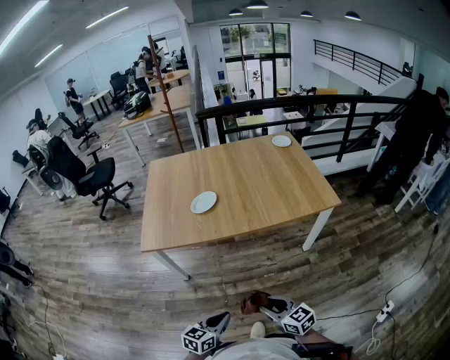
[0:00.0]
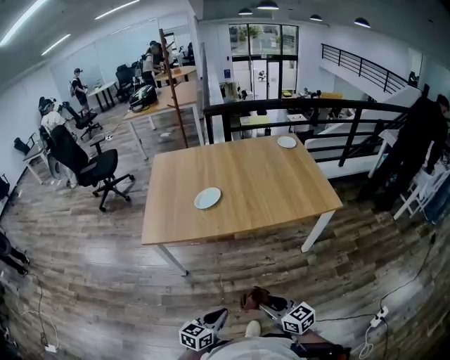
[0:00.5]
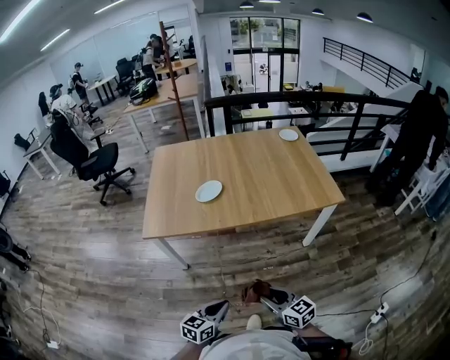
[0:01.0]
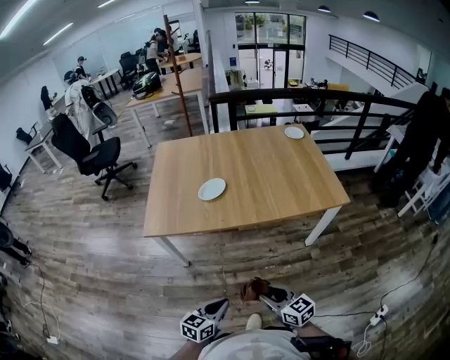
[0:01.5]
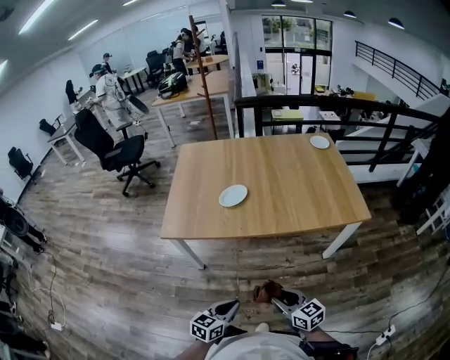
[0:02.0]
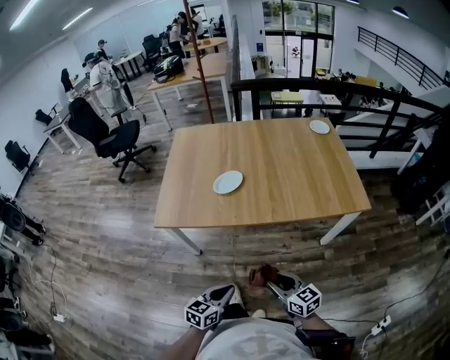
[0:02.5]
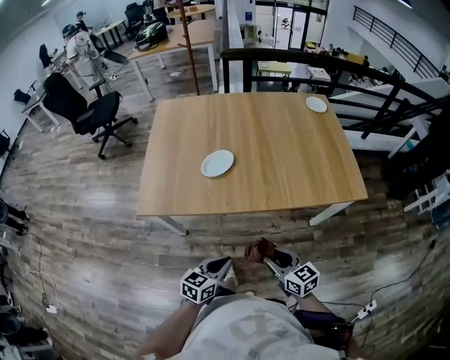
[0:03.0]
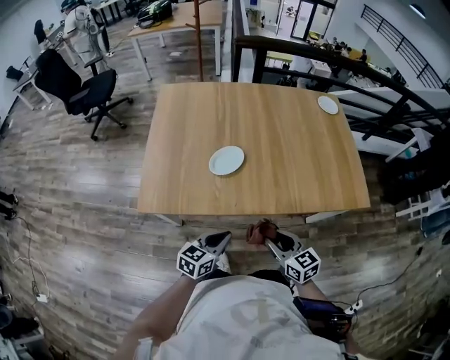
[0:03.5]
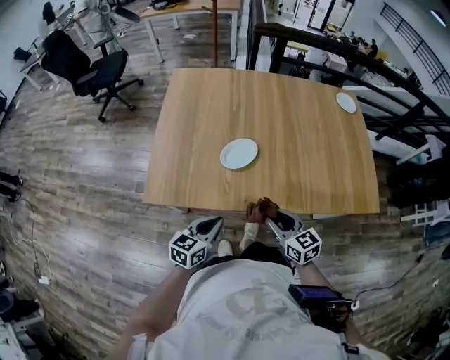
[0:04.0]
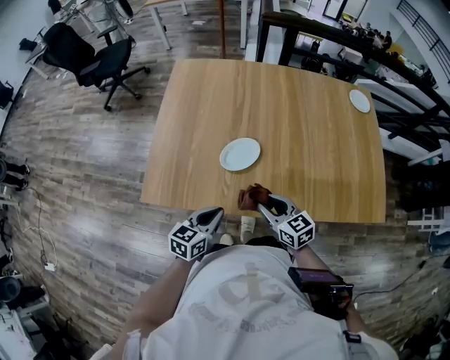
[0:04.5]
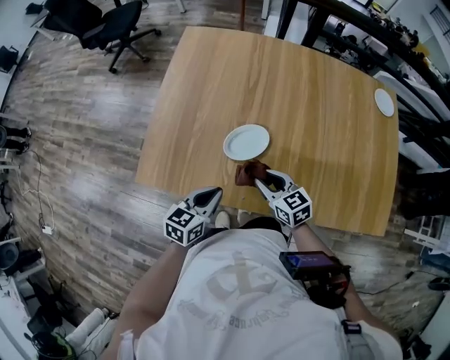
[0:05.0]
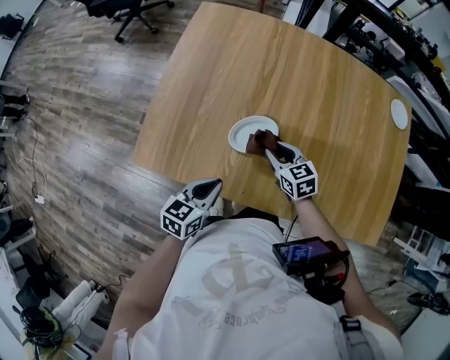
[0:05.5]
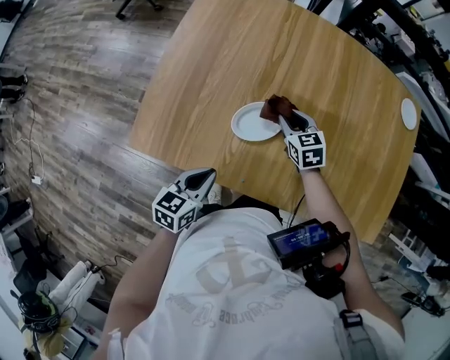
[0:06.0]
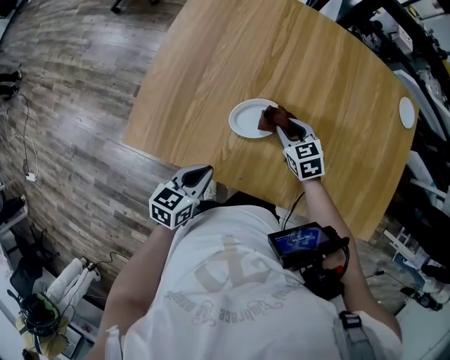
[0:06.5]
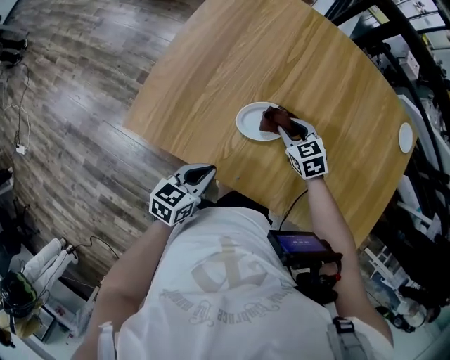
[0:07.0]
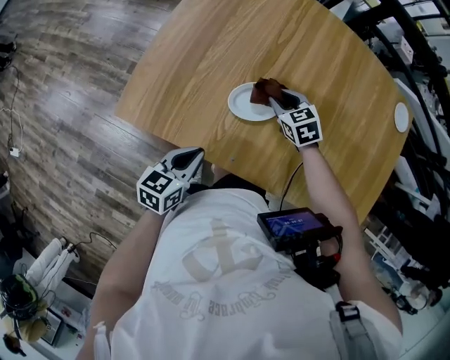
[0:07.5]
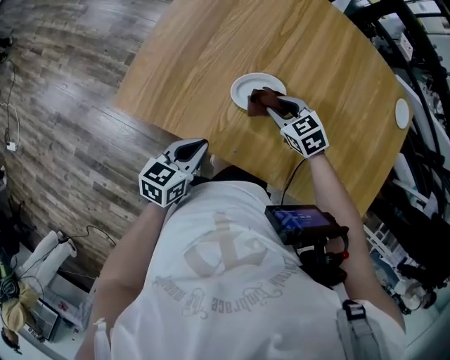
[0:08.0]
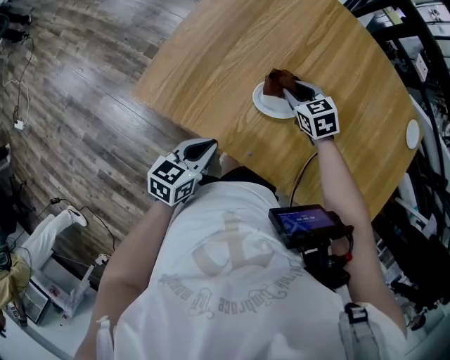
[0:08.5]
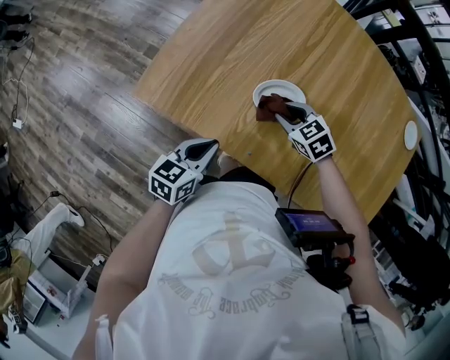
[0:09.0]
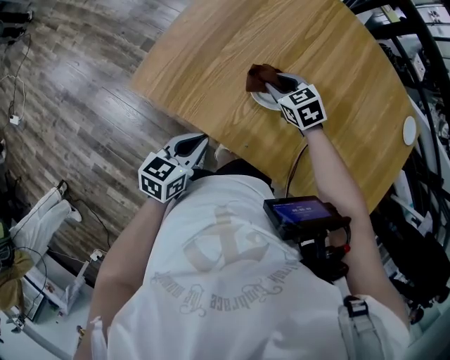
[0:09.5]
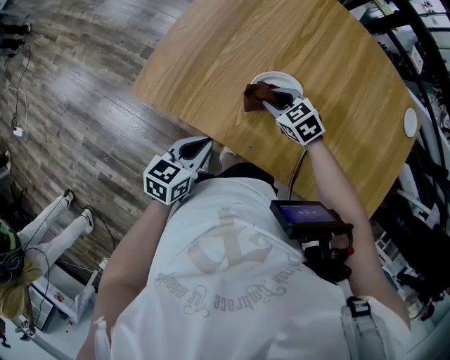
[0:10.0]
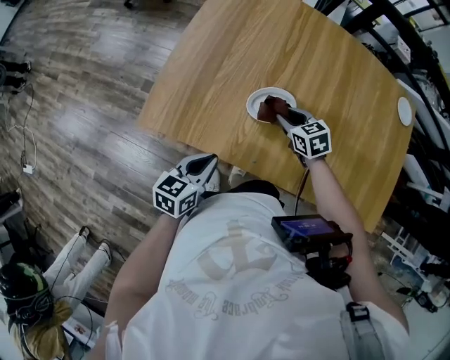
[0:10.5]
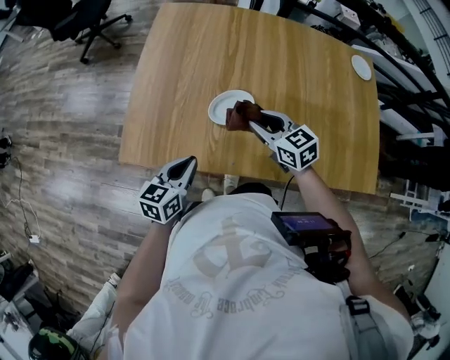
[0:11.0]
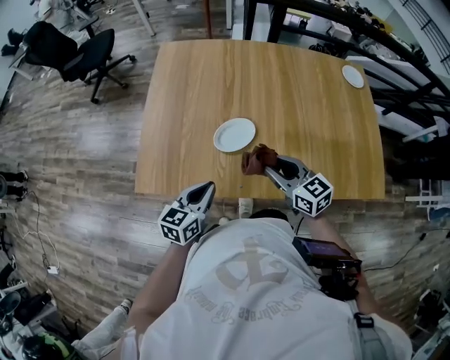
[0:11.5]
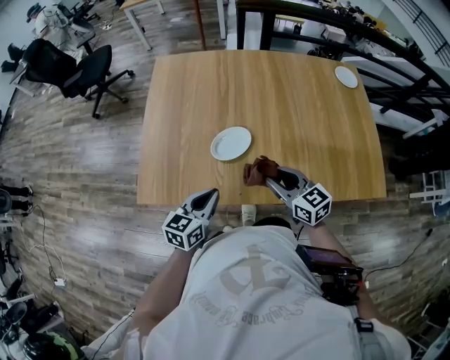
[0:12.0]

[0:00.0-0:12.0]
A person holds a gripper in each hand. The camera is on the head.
0:00.0 to 0:02.0: Both grippers move forward, about 5 cm.
0:02.0 to 0:04.0: The grippers both shift forward by about 30 cm.
0:04.0 to 0:06.0: The right gripper is displaced forward by approximately 30 cm, and swivels about 20 degrees. Meanwhile the left gripper is displaced forward by approximately 10 cm.
0:06.0 to 0:08.0: The right gripper heads backward, covering about 5 cm, and rotates roughly 30 degrees.
0:08.0 to 0:10.0: The right gripper swings forward and backward, roughly 5 cm each way, with 3 reversals.
0:10.0 to 0:12.0: The left gripper changes place by some 10 cm, and rotates approximately 20 degrees. The right gripper moves about 25 cm, and tips its fingers upward by roughly 40 degrees.

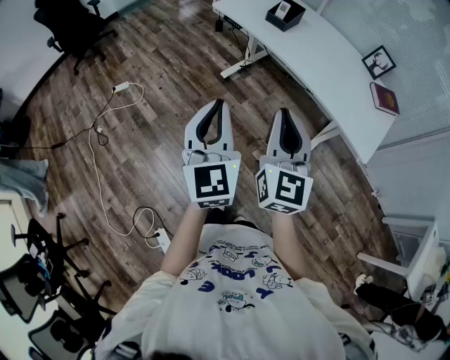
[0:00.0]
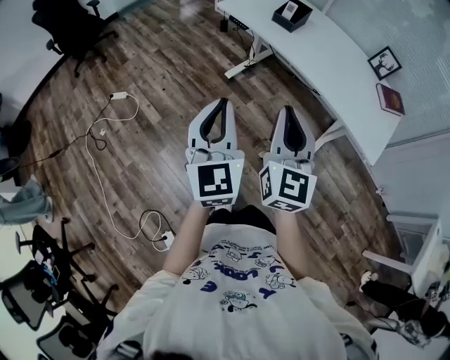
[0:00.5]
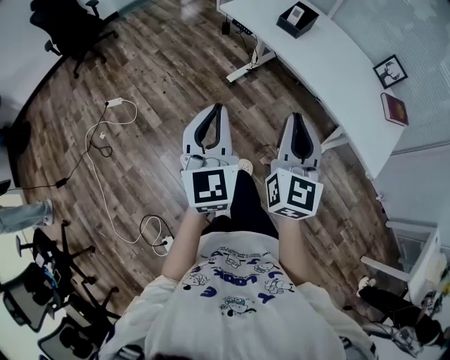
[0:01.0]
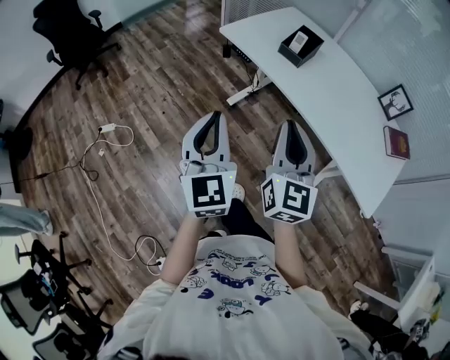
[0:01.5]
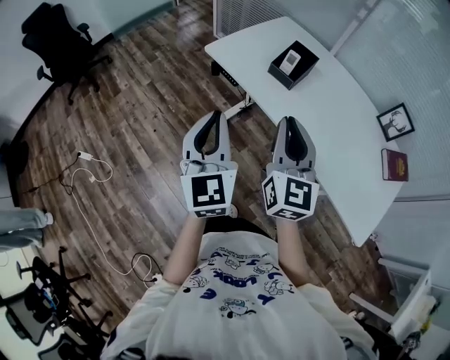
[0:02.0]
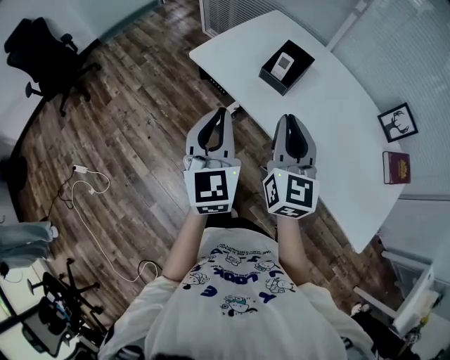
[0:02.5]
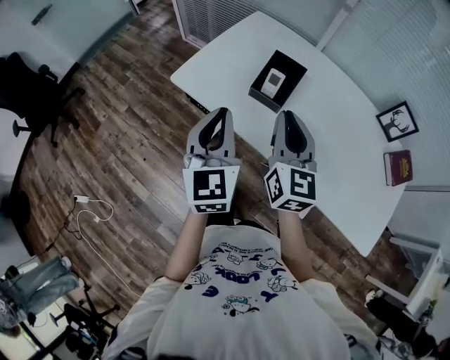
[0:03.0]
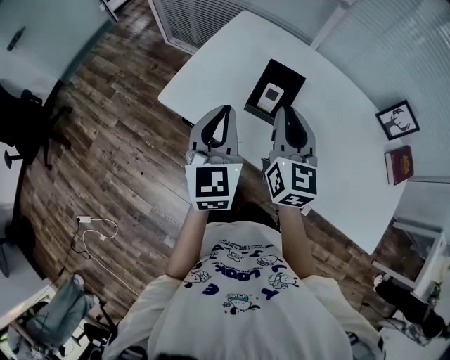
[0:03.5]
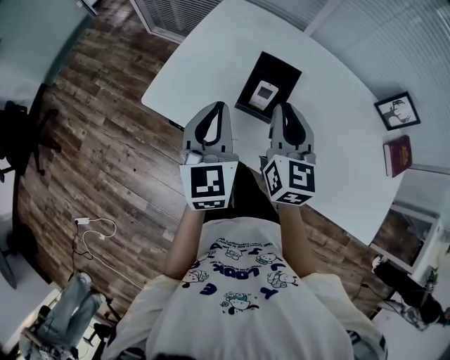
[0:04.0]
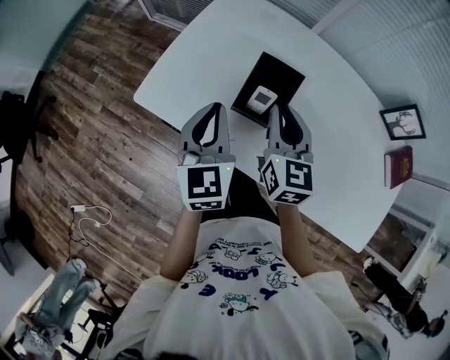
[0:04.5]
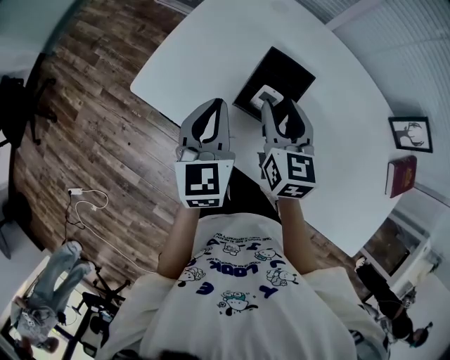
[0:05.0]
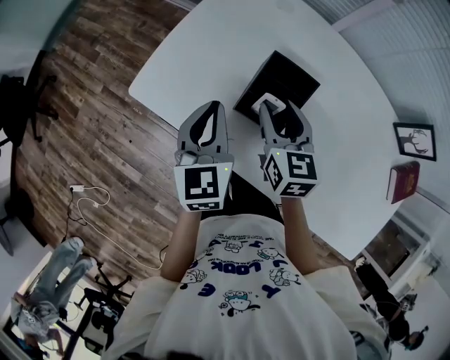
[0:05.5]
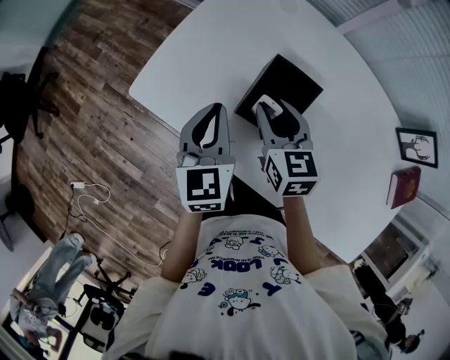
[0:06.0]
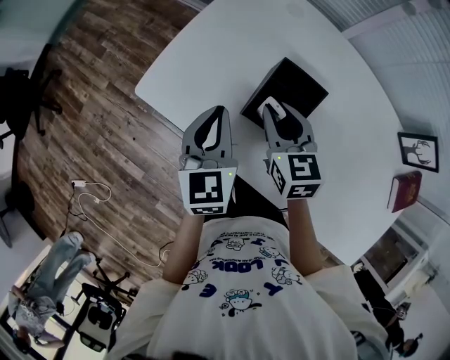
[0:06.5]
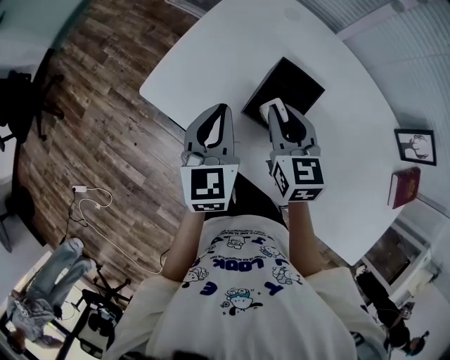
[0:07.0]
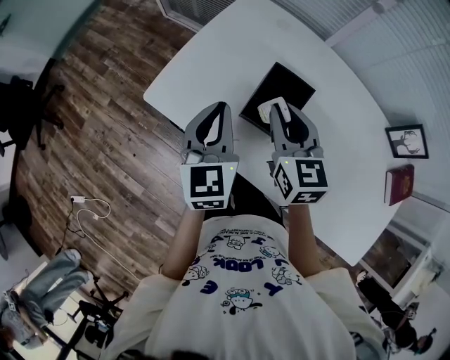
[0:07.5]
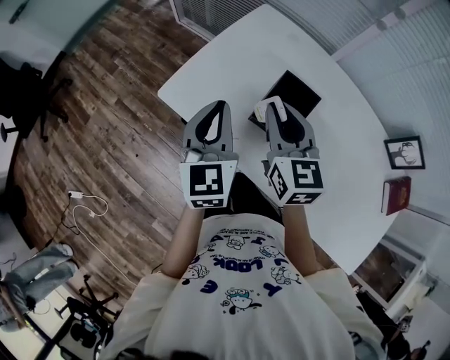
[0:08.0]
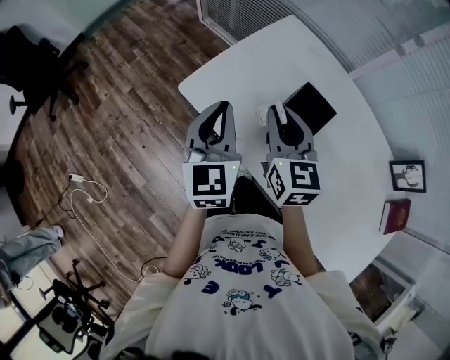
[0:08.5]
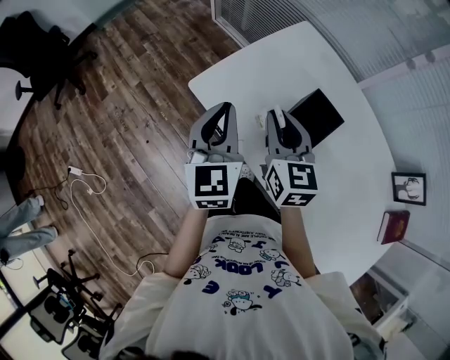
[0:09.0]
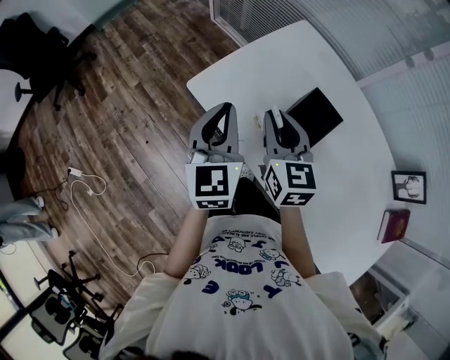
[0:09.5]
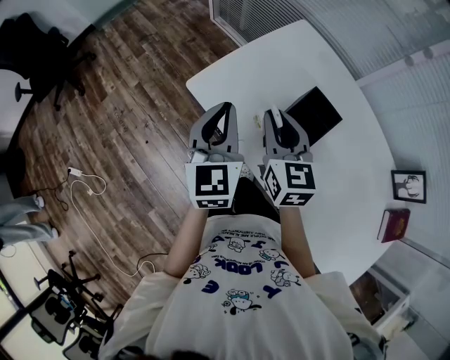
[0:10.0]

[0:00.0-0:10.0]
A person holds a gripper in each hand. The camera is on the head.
0:00.0 to 0:02.0: Both grippers move forward, about 40 cm.
0:02.0 to 0:04.0: Both grippers move forward, some 40 cm. The left gripper swivels about 30 degrees, while the right gripper rotates about 20 degrees.
0:04.0 to 0:06.0: The grippers both shift downward and forward by approximately 15 cm. The right gripper turns by roughly 30 degrees, and opens its fingers.
0:06.0 to 0:08.0: Both grippers travel together upward and to the left, approximately 10 cm.
0:08.0 to 0:10.0: The two grippers go roughly 5 cm to the left.

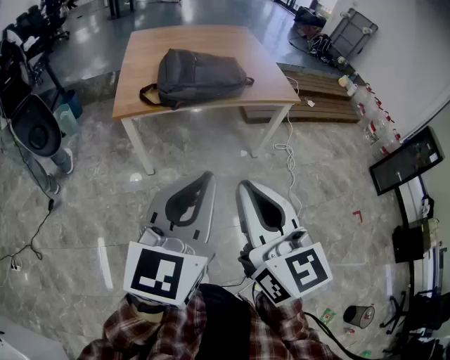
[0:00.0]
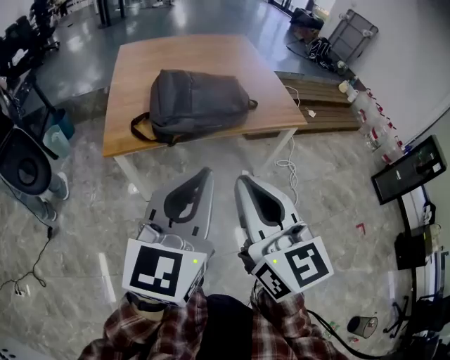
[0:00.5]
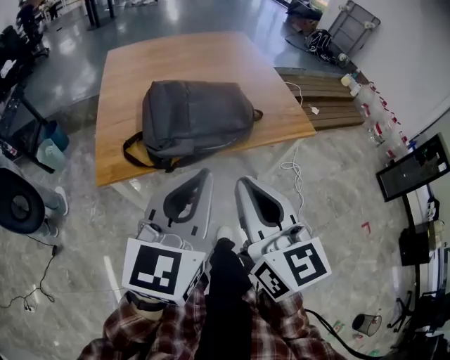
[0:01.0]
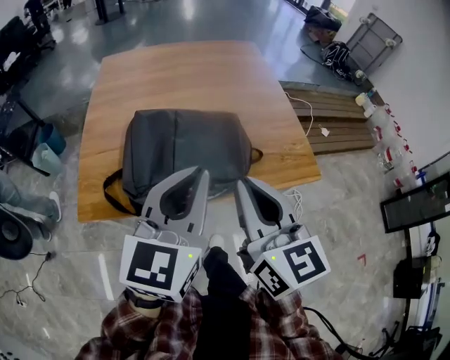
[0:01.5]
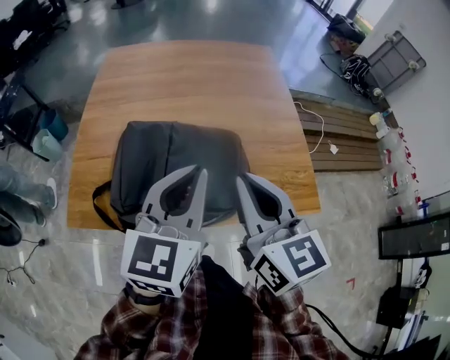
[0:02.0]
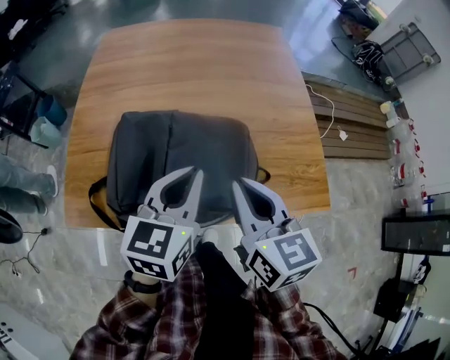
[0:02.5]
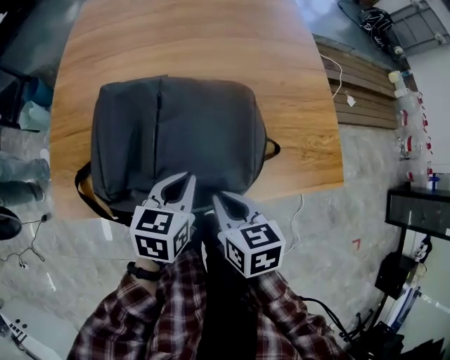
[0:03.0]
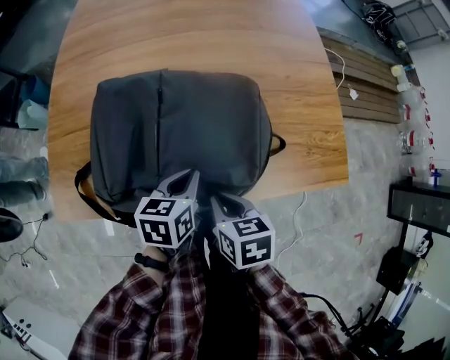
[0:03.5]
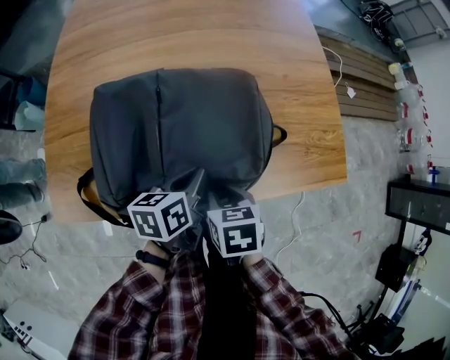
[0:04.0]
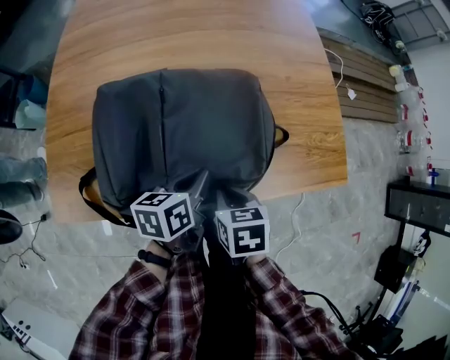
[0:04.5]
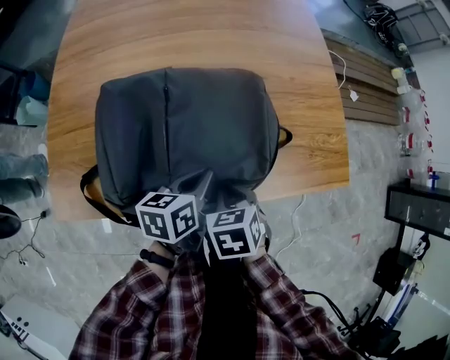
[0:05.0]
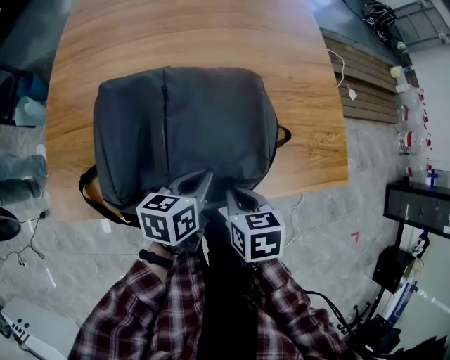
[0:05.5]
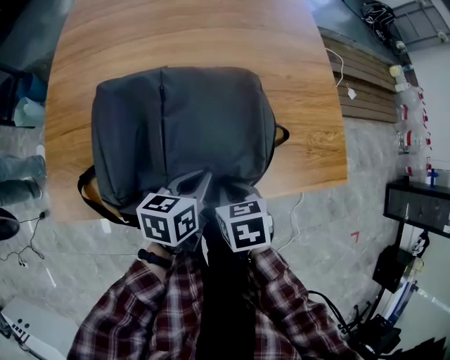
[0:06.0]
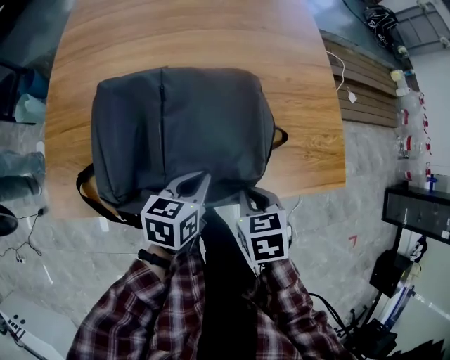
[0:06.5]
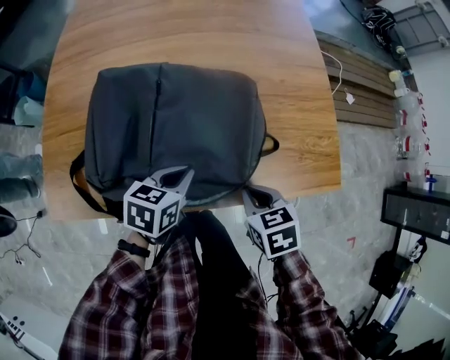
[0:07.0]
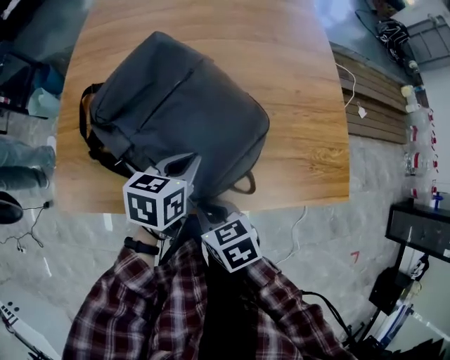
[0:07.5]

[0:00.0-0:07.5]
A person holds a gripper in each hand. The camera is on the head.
0:00.0 to 0:02.0: The two grippers travel together, forward, some 70 cm.
0:02.0 to 0:04.0: Both grippers move downward, roughly 30 cm. The left gripper rotates some 50 degrees. Meanwhile the right gripper tilts its fingers some 50 degrees downward, and opens its fingers.
0:04.0 to 0:05.5: The right gripper closes.
0:05.5 to 0:07.5: The left gripper moves roughly 5 cm. The right gripper goes about 5 cm to the left, and rotates roughly 20 degrees.
